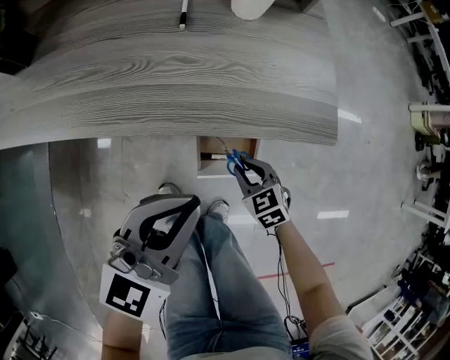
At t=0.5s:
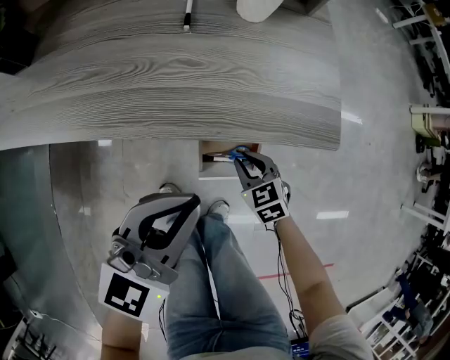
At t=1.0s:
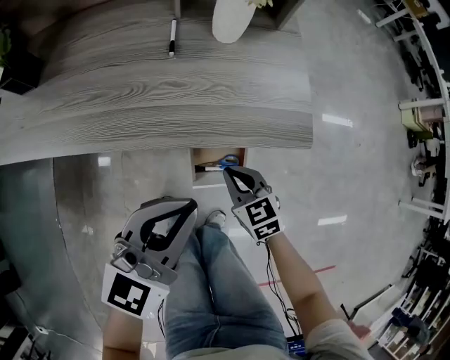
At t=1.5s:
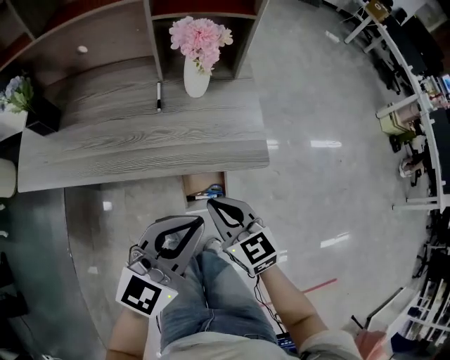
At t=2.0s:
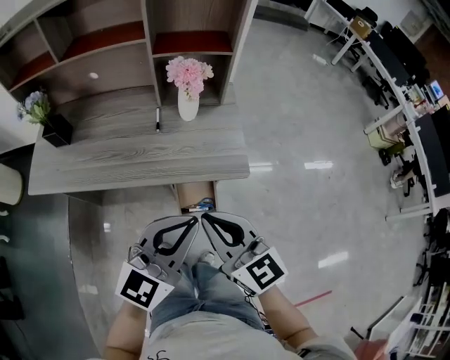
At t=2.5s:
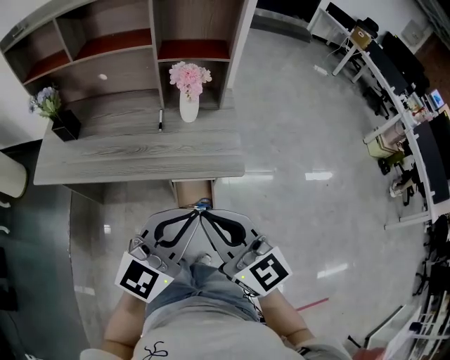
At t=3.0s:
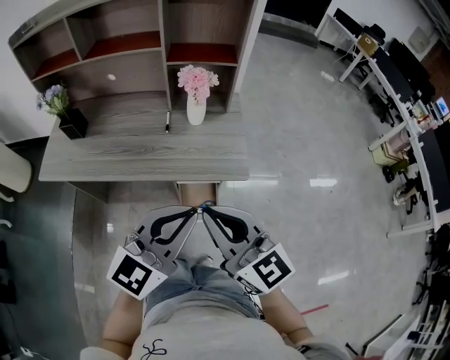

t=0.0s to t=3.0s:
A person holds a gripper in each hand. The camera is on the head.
t=0.0s to t=1.5s: The right gripper goes roughly 30 cm upward, and swivels some 30 degrees. Meanwhile the left gripper is displaced upward by approximately 10 cm.
t=1.5s to t=3.0s: The left gripper travels upward and backward by about 10 cm. The right gripper goes some 25 cm upward, and turns by roughly 30 degrees.

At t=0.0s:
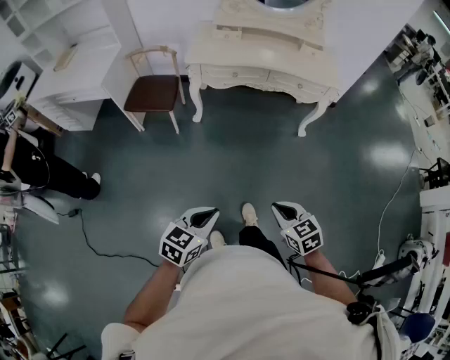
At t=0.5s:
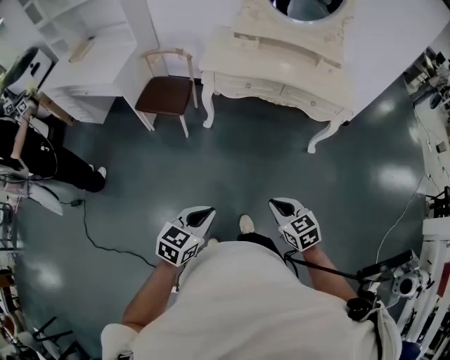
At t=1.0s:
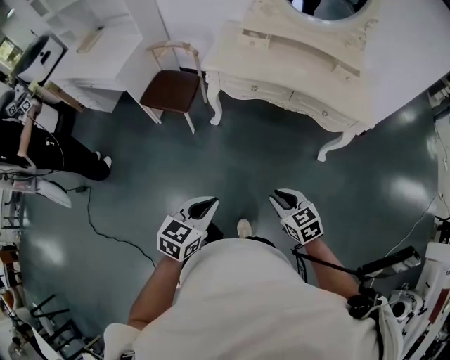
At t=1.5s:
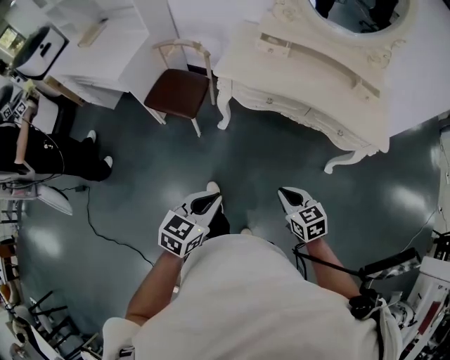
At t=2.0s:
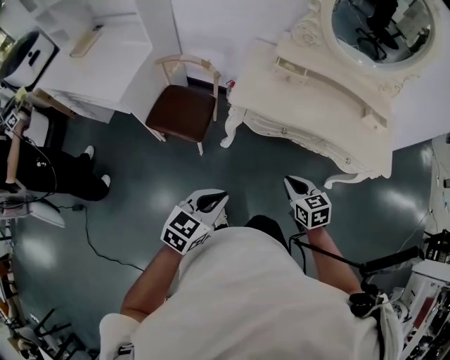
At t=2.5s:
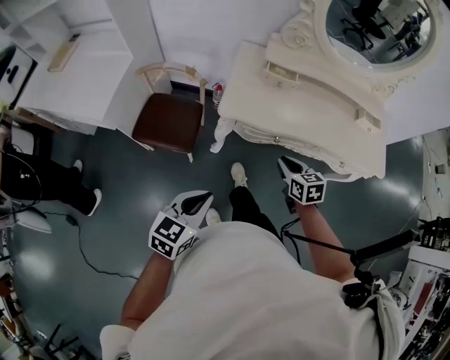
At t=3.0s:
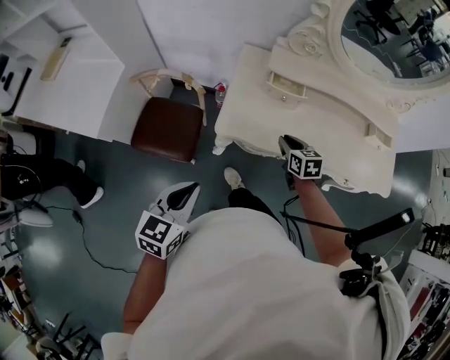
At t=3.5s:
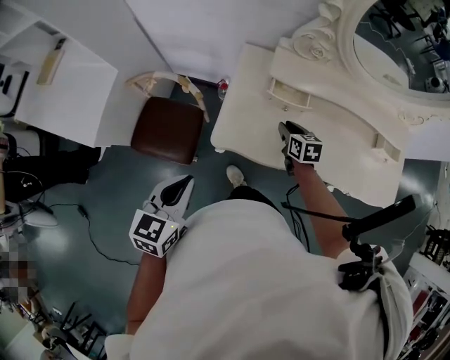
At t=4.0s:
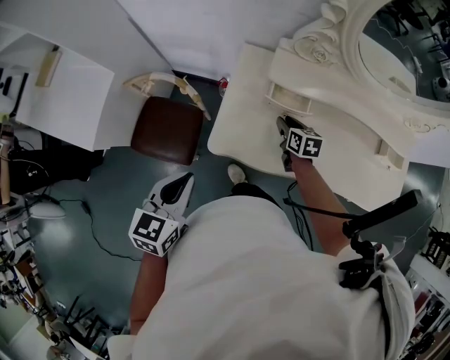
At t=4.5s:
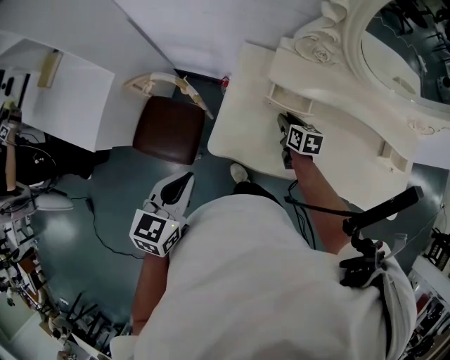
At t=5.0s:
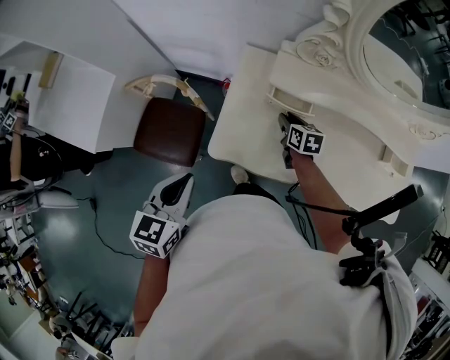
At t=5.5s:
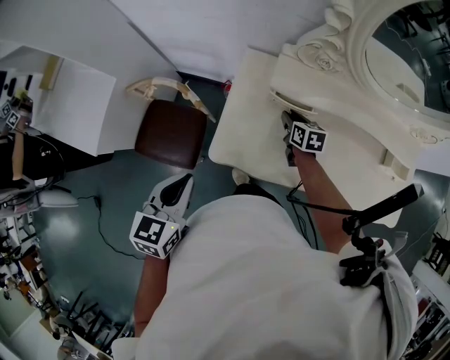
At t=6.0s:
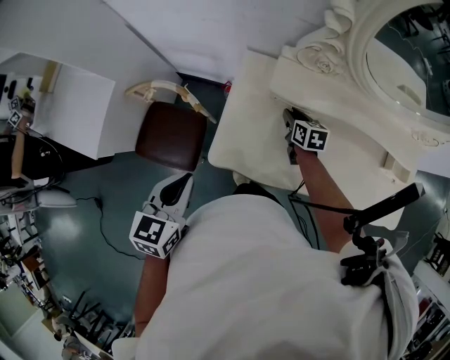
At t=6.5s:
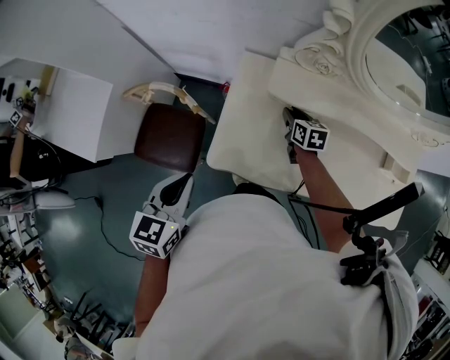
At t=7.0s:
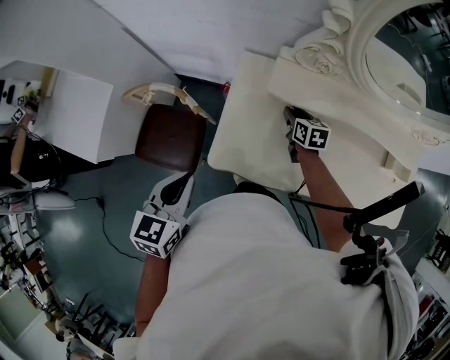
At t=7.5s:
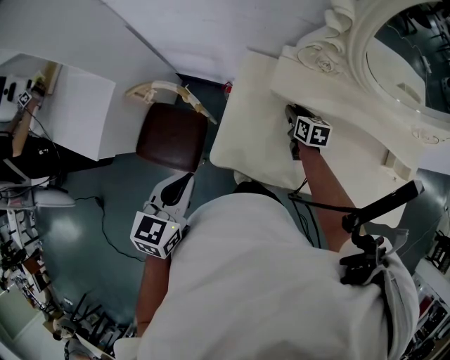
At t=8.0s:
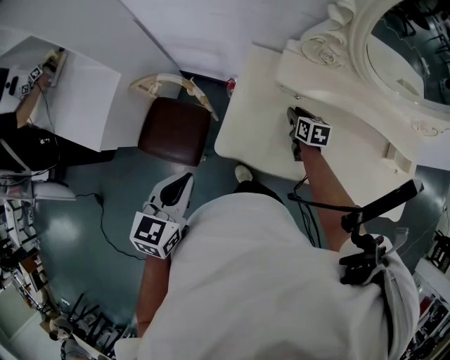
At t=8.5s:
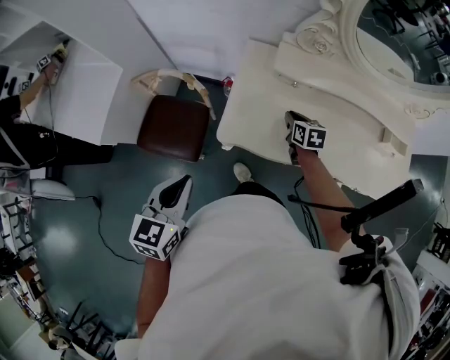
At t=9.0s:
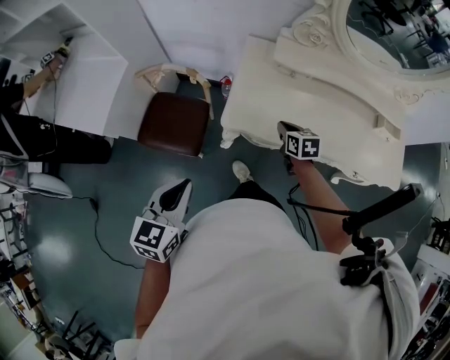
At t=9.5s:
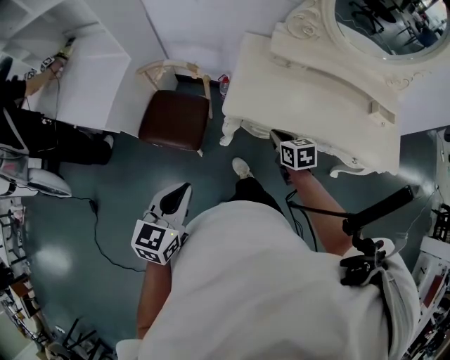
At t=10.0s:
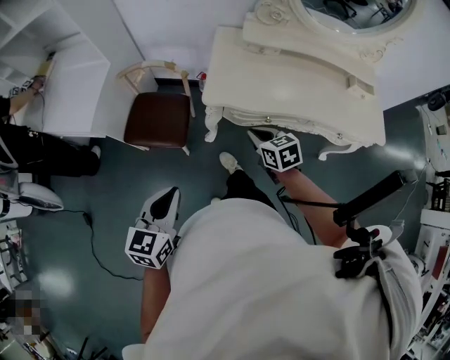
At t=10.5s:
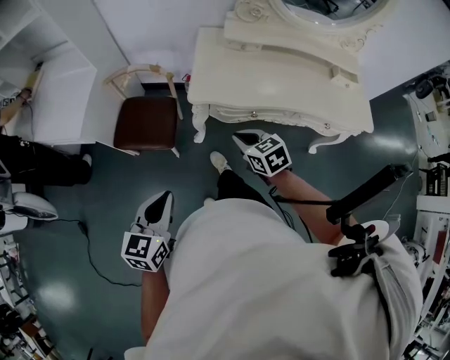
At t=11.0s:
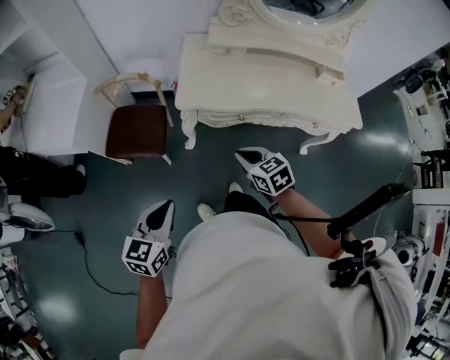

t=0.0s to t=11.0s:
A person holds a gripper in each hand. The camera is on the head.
t=0.0s to t=2.0s: The pair of grippers is taken forward, about 50 cm.
t=2.0s to t=3.5s: The two grippers go some 40 cm forward. The right gripper opens up.
t=3.5s to t=5.5s: The two grippers go some 10 cm forward.
t=5.5s to t=7.5s: There are only small adjustments of the grippers.
t=7.5s to t=9.0s: Both grippers travel together backward, roughly 20 cm. The right gripper closes up.
t=9.0s to t=11.0s: The left gripper is displaced backward by roughly 20 cm; the right gripper shifts some 30 cm backward.

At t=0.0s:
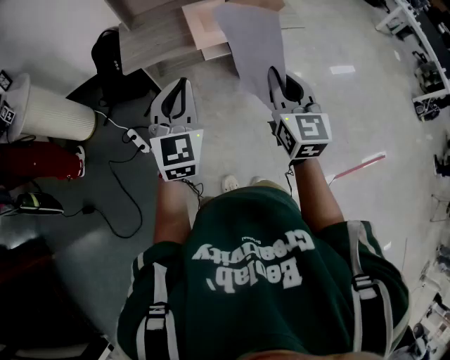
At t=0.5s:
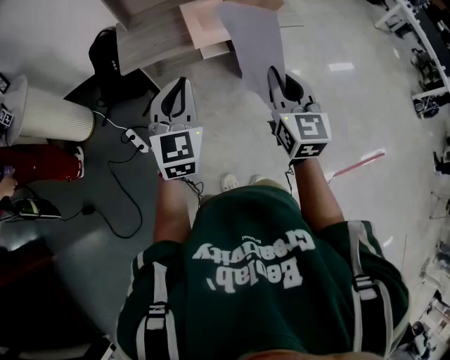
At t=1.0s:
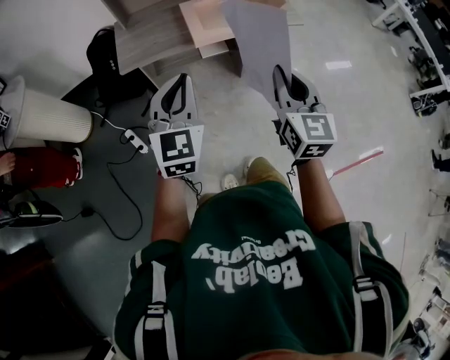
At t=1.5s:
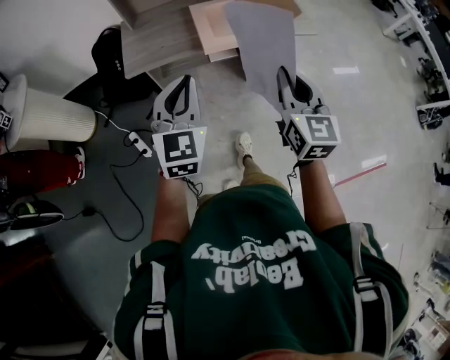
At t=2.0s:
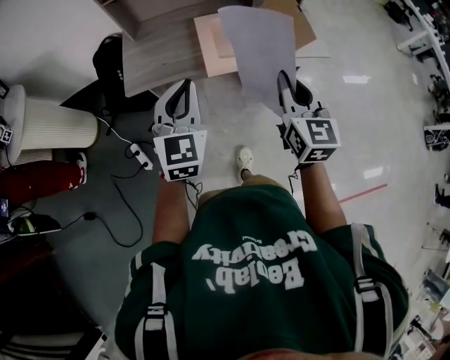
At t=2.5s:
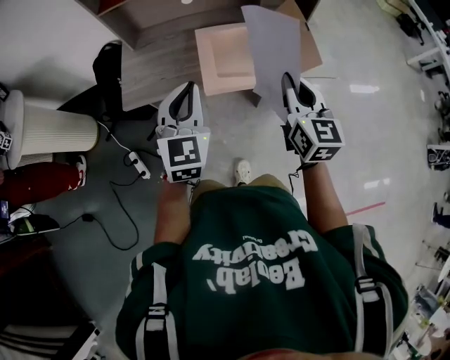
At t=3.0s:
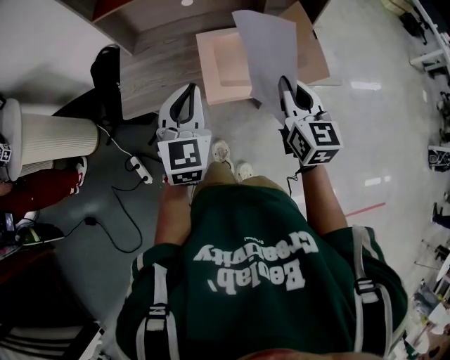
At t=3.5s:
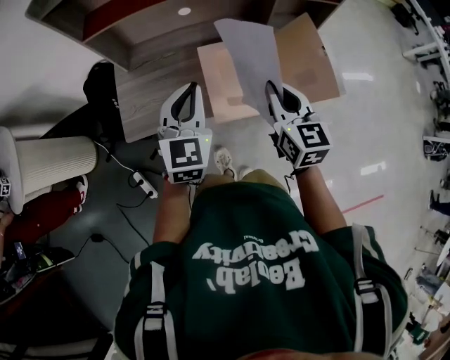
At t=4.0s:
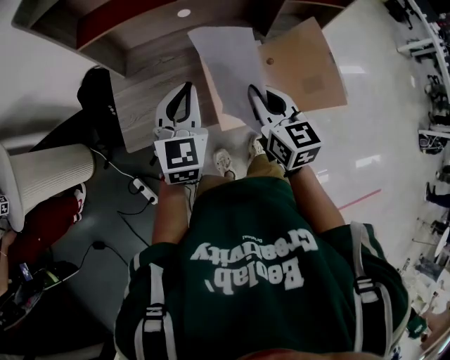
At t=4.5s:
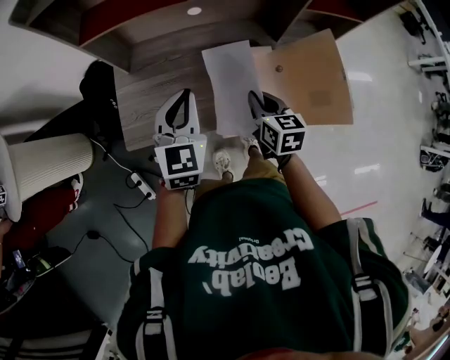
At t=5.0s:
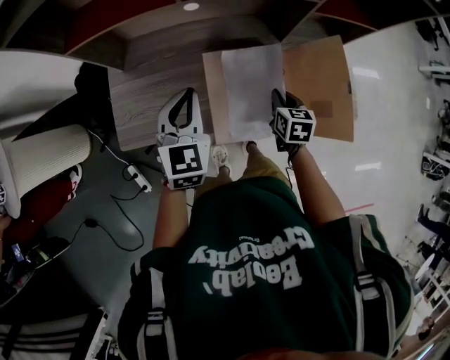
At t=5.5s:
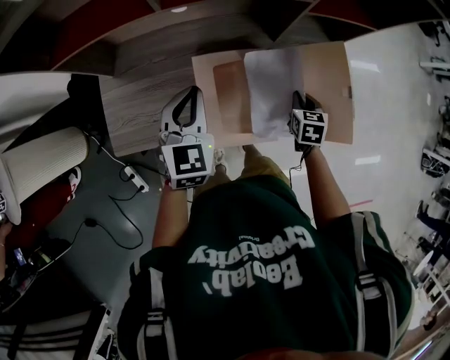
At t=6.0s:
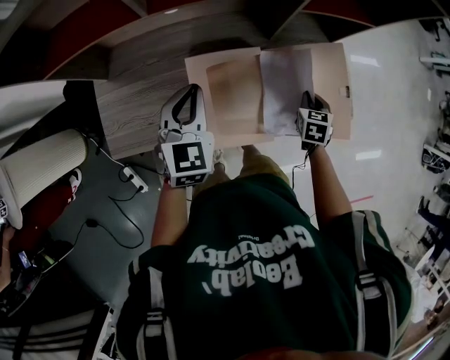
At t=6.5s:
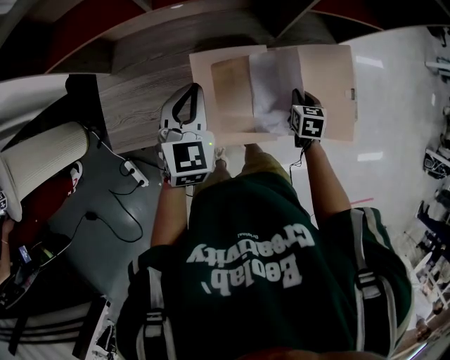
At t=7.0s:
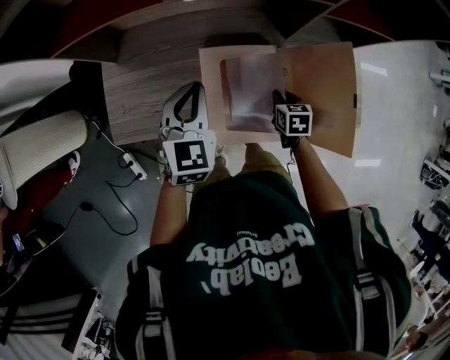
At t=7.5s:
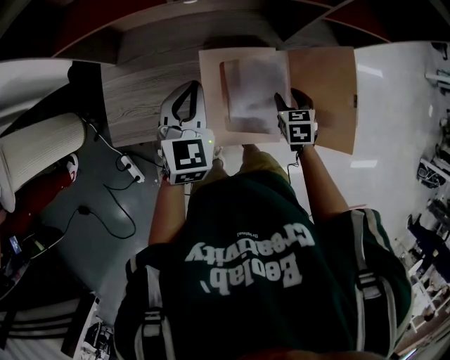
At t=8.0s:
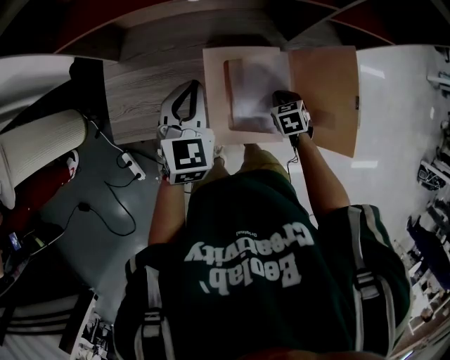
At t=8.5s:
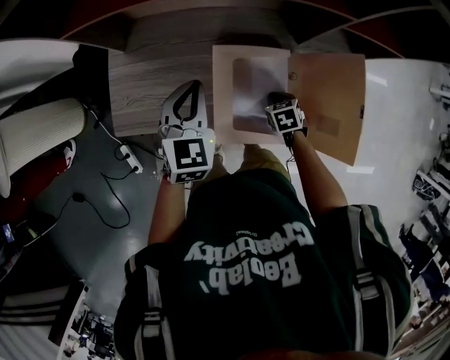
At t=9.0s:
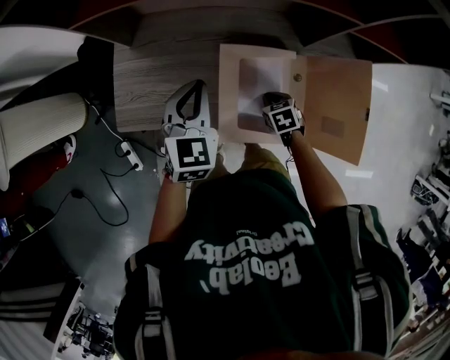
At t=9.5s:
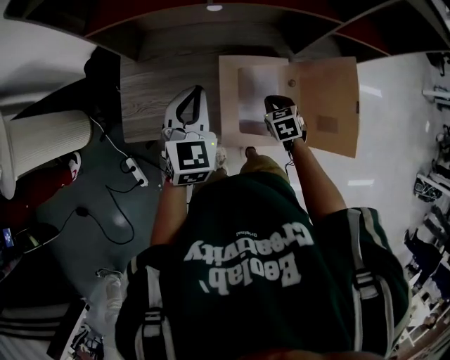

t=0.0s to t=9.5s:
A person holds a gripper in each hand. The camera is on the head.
t=0.0s to t=2.0s: Both grippers travel together forward, some 25 cm.
t=2.0s to t=4.0s: Both grippers move forward, roughly 30 cm.
t=4.0s to t=5.5s: The right gripper moves to the right, downward and forward, about 35 cm, and tips its fingers downward by approximately 30 degrees, while the left gripper travels forward, to the right and downward by some 15 cm.
t=5.5s to t=7.5s: The right gripper shifts some 5 cm to the left, and opens up.
t=7.5s to t=9.5s: The left gripper shifts approximately 5 cm to the left, while the right gripper travels to the left by approximately 10 cm, and closes its fingers.

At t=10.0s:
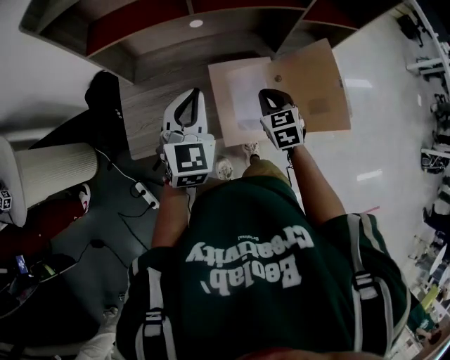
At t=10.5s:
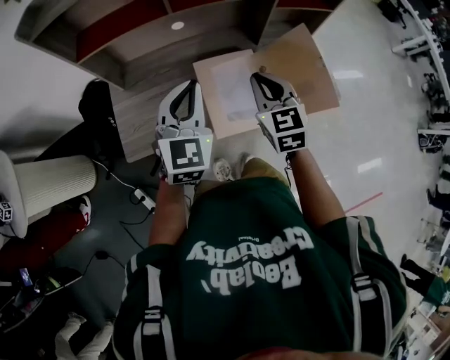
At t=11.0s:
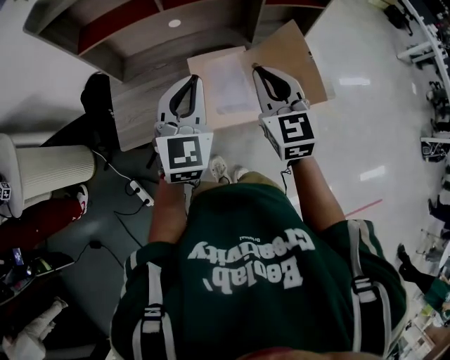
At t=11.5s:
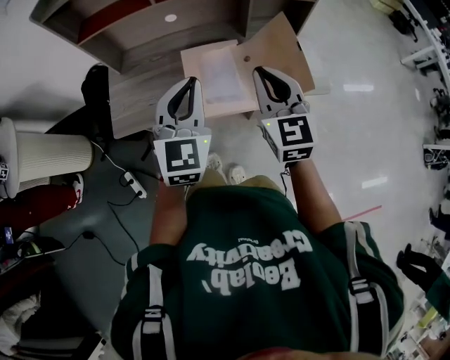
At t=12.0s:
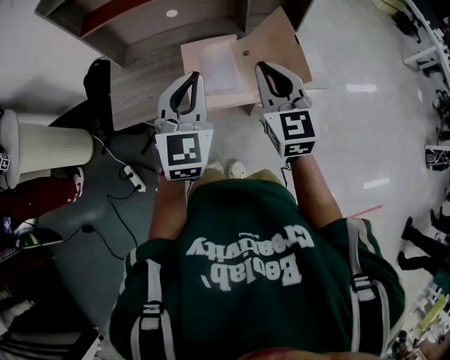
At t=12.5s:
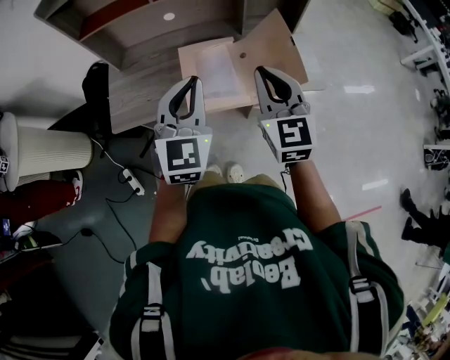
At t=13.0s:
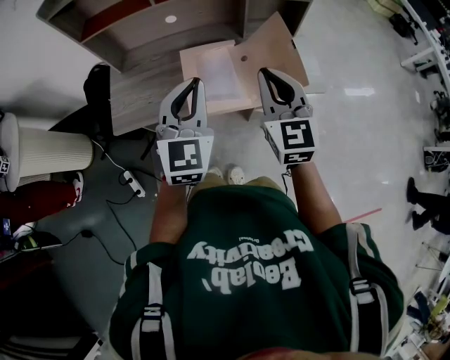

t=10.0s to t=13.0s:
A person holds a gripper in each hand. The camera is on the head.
t=10.0s to t=11.5s: The left gripper is displaced backward, to the right and upward by approximately 20 cm; the right gripper heads upward, backward and to the right, covering roughly 25 cm, and points its fingers roughly 30 degrees further upward.
t=11.5s to t=13.0s: The grippers stay close to where they were, moving slightly.
